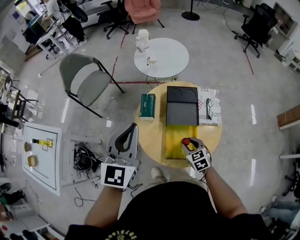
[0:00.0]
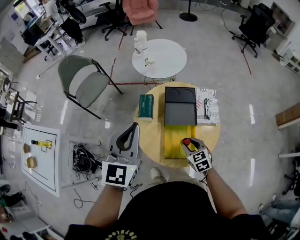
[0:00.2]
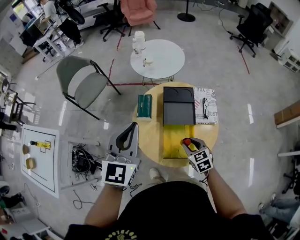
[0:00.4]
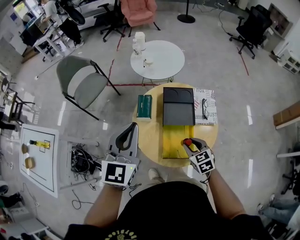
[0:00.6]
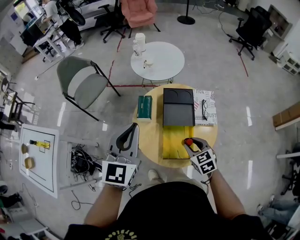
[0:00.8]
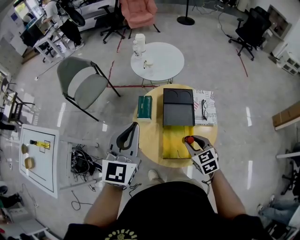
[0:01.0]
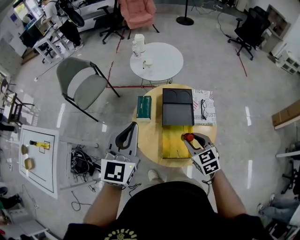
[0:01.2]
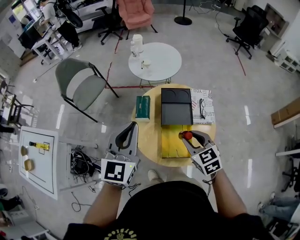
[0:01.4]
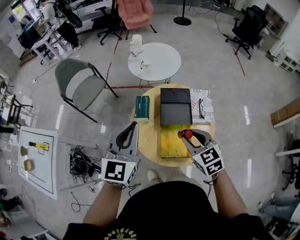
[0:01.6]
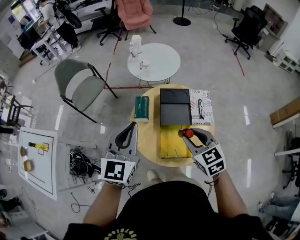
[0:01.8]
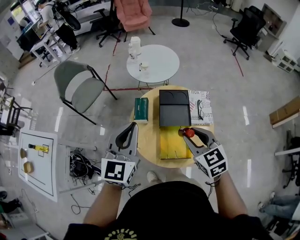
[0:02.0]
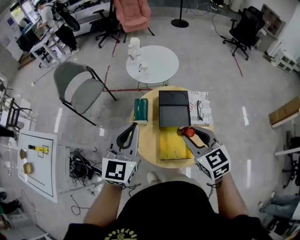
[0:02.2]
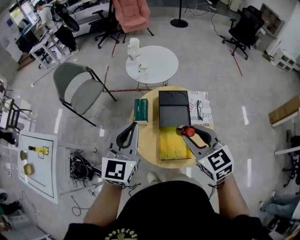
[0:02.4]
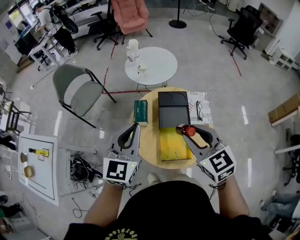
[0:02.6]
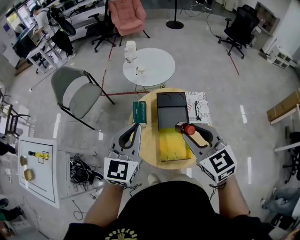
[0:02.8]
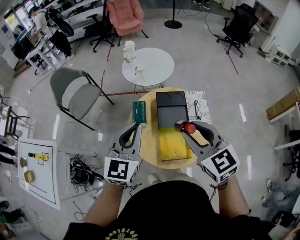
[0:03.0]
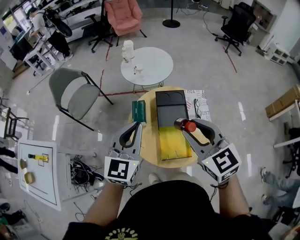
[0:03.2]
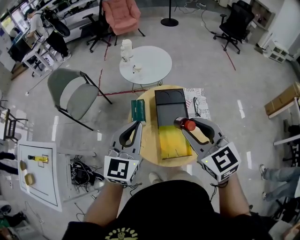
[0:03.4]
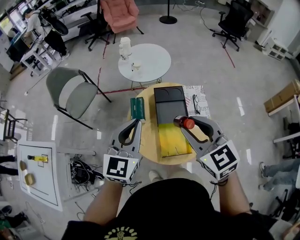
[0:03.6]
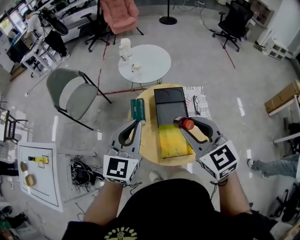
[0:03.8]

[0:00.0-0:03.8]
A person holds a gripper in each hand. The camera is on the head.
0:00.0 to 0:01.2: The right gripper goes roughly 15 cm upward.
0:01.2 to 0:02.6: The right gripper heads upward, covering roughly 15 cm.
0:02.6 to 0:03.8: There are only small adjustments of the grippers.

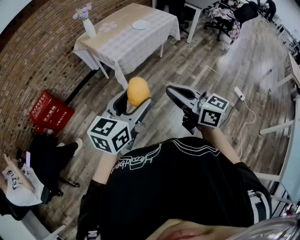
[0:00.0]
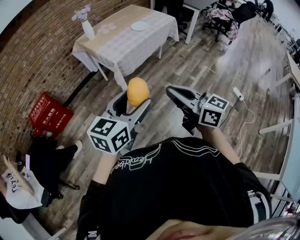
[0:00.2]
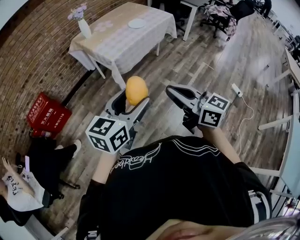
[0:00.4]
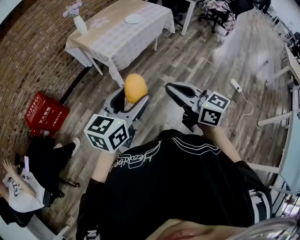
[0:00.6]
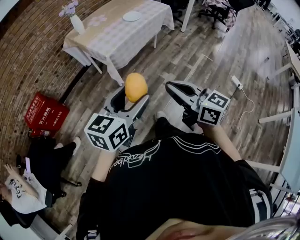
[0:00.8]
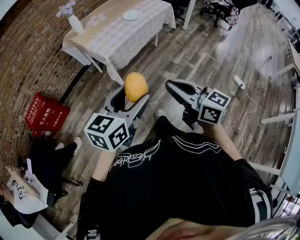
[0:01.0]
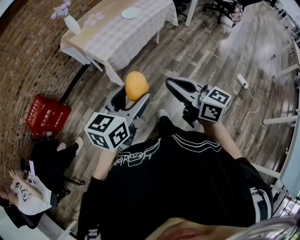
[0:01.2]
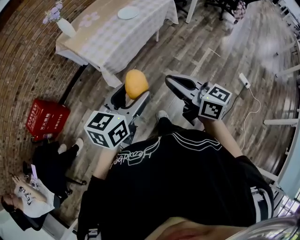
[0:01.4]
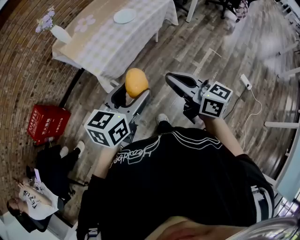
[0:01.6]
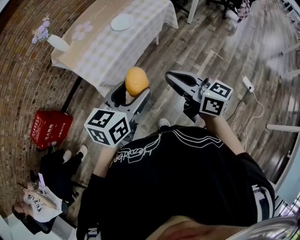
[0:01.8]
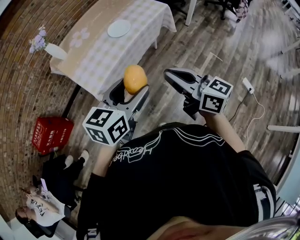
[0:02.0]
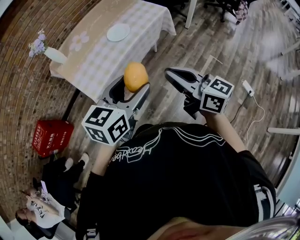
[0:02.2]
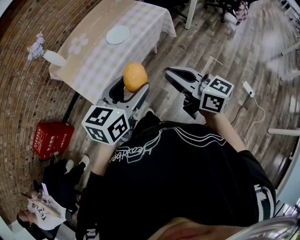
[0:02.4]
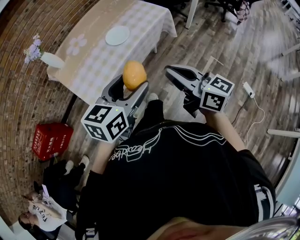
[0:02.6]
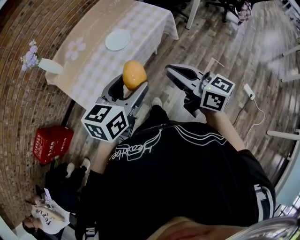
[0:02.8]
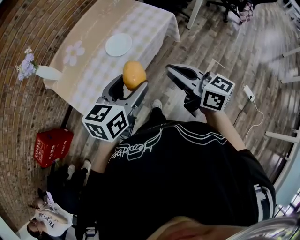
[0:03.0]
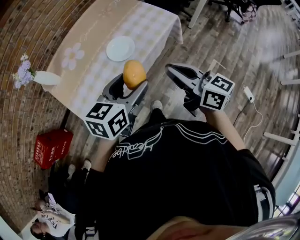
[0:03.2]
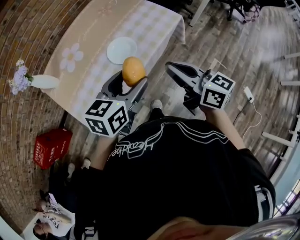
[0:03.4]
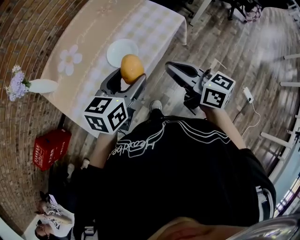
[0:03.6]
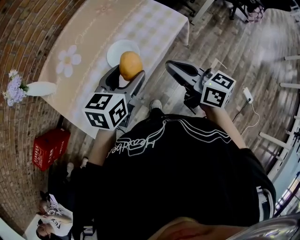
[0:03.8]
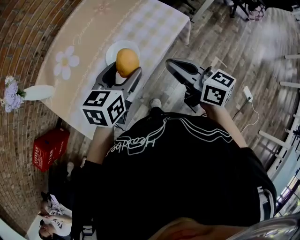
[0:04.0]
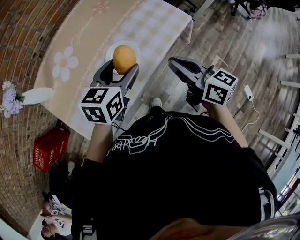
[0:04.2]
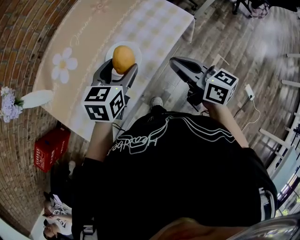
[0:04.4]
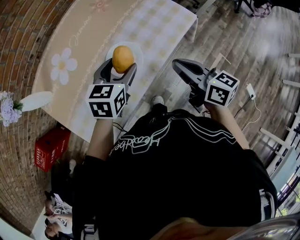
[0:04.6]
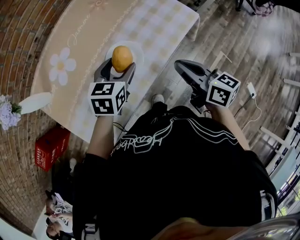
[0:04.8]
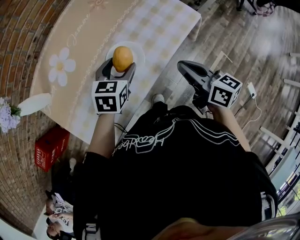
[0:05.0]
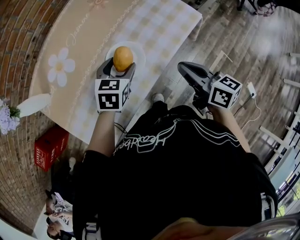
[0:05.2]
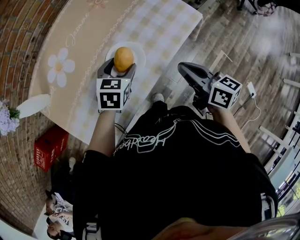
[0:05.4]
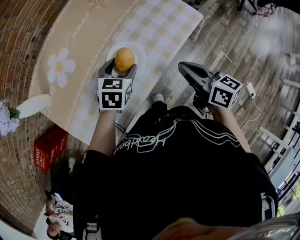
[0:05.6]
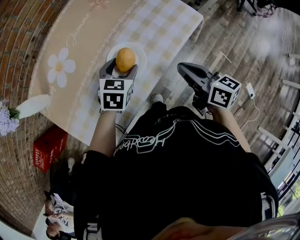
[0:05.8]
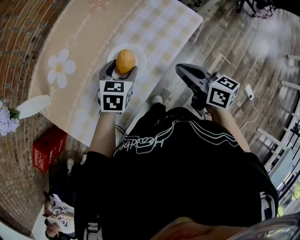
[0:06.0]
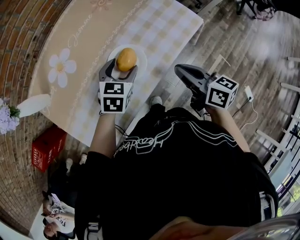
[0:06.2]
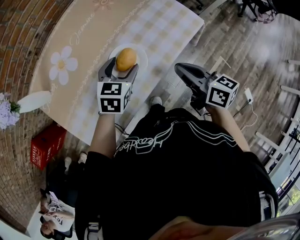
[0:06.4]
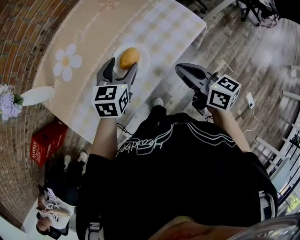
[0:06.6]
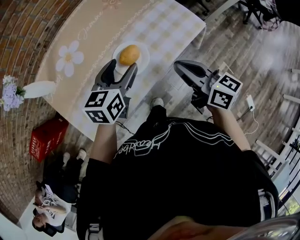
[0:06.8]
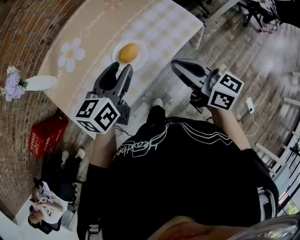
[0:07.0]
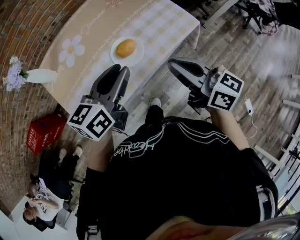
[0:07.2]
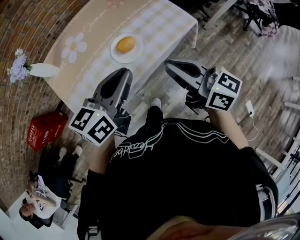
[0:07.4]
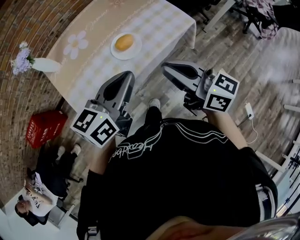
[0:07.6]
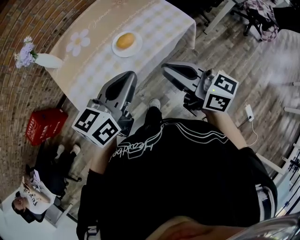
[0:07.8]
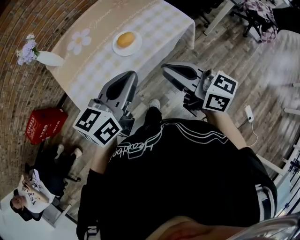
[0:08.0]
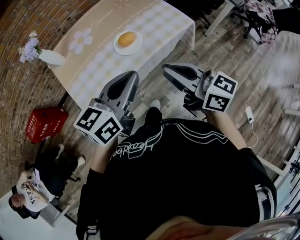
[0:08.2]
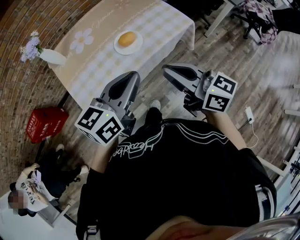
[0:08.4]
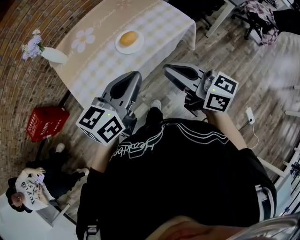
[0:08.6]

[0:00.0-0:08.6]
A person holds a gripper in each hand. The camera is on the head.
0:00.0 to 0:01.4: The left gripper shifts some 20 cm forward and downward. Meanwhile the right gripper is displaced forward and to the right by some 20 cm.
0:01.4 to 0:02.8: Both grippers move forward, some 30 cm.
0:02.8 to 0:04.4: Both grippers travel together forward, approximately 30 cm.
0:04.4 to 0:05.8: The right gripper travels downward by approximately 5 cm, while the left gripper travels downward by about 10 cm.
0:05.8 to 0:07.2: The right gripper heads upward, covering approximately 15 cm, and turns by approximately 20 degrees; the left gripper travels upward and backward by about 25 cm, angles its fingers upward, by approximately 30 degrees, and closes.
0:07.2 to 0:08.6: The two grippers go some 15 cm backward. The left gripper closes up.

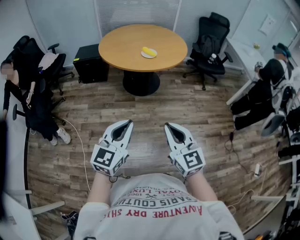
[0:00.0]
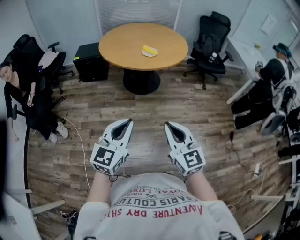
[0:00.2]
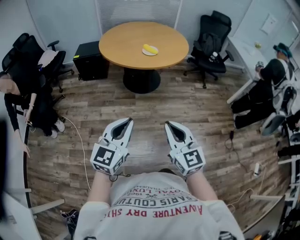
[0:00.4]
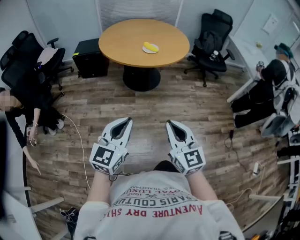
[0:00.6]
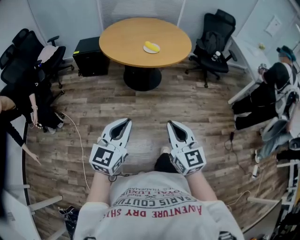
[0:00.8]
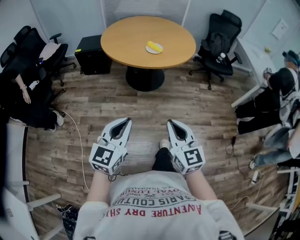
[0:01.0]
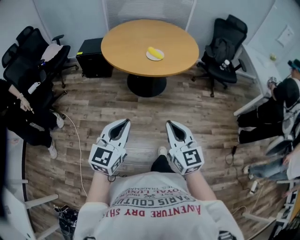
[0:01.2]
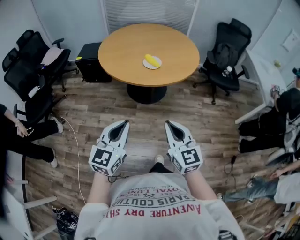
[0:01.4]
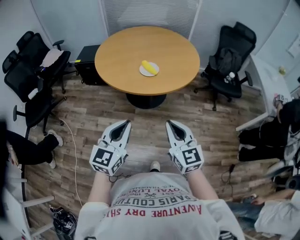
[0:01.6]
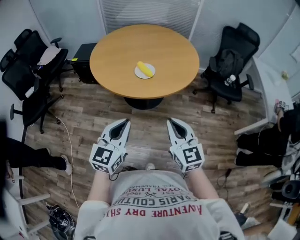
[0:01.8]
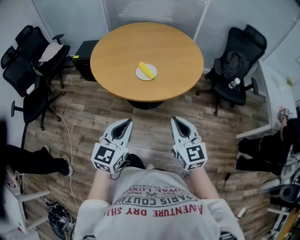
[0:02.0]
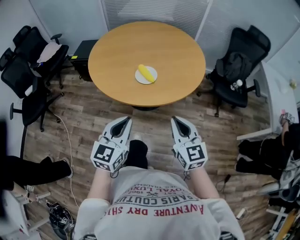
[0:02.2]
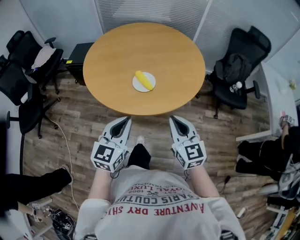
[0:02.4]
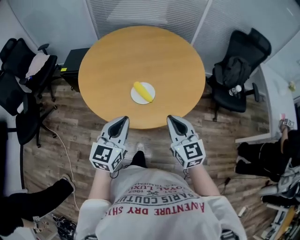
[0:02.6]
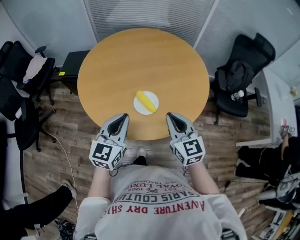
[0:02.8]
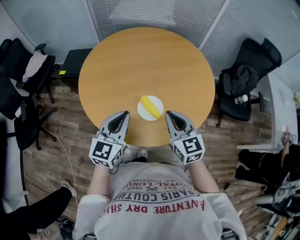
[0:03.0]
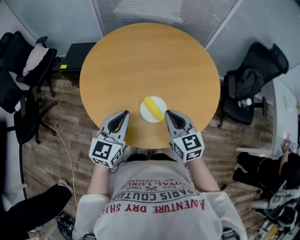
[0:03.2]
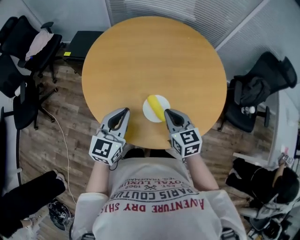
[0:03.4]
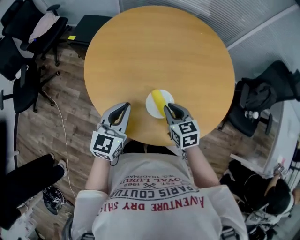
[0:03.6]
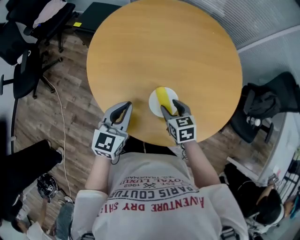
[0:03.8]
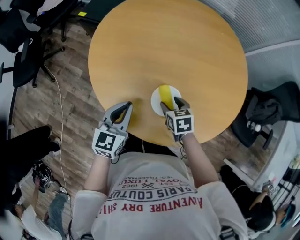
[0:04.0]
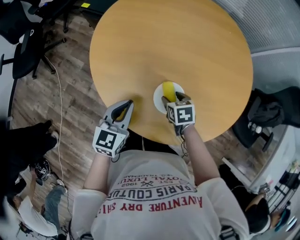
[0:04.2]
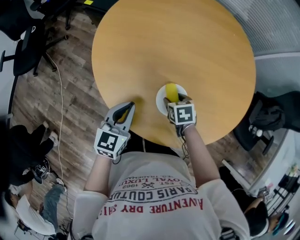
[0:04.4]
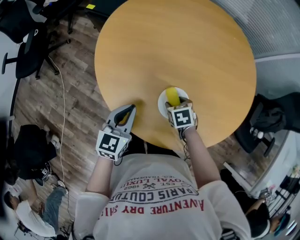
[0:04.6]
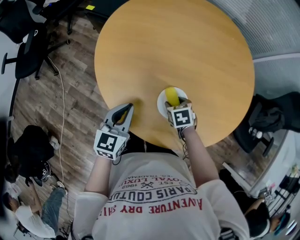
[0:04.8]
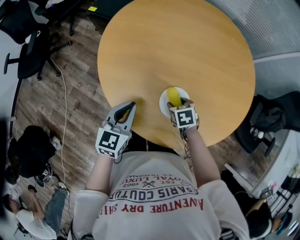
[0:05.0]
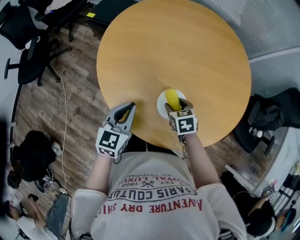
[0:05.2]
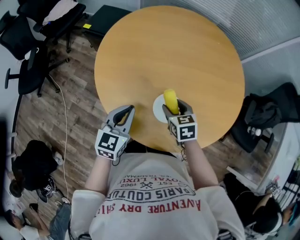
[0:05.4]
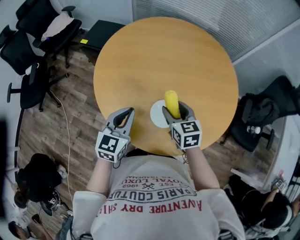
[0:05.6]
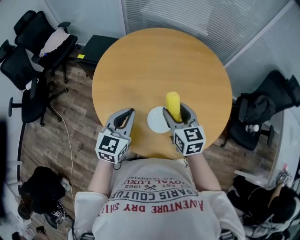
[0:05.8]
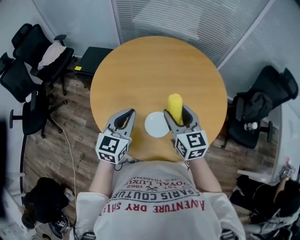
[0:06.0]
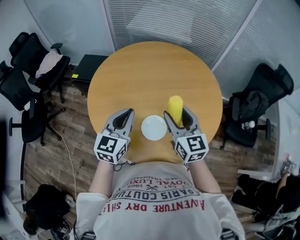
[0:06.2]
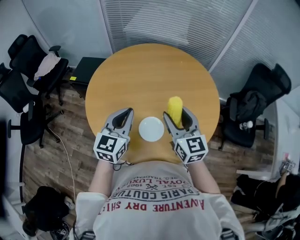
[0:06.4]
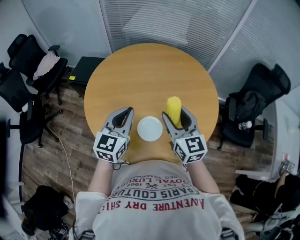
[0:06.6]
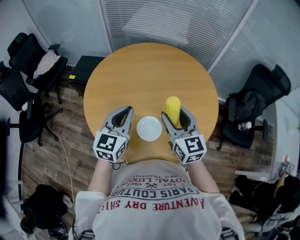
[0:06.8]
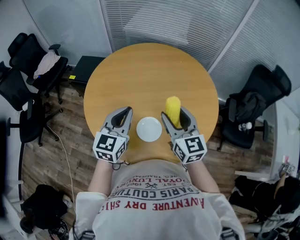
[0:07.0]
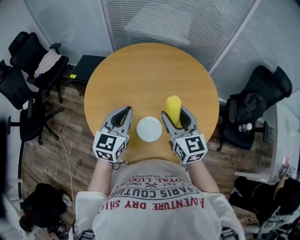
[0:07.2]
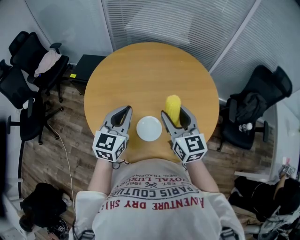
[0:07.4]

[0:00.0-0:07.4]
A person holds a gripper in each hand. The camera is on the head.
0:00.0 to 0:01.4: Both grippers travel together forward, roughly 20 cm.
0:01.4 to 0:03.0: The pair of grippers is taken forward, some 50 cm.
0:03.0 to 0:04.4: The right gripper heads downward, covering some 30 cm, tips its fingers downward by some 50 degrees, and opens. The left gripper is displaced downward by about 15 cm, and turns by roughly 30 degrees.
0:04.4 to 0:06.0: The left gripper heads upward, covering approximately 15 cm; the right gripper heads upward, covering about 30 cm, and tilts its fingers some 50 degrees upward.
0:06.0 to 0:07.4: The left gripper shifts by approximately 5 cm. The right gripper shifts by approximately 5 cm.

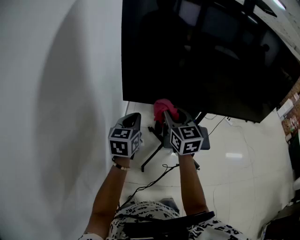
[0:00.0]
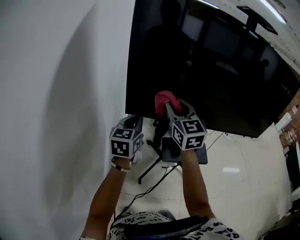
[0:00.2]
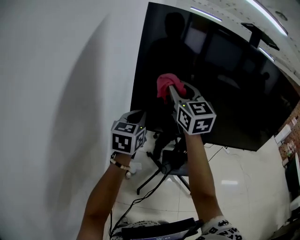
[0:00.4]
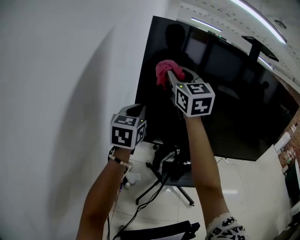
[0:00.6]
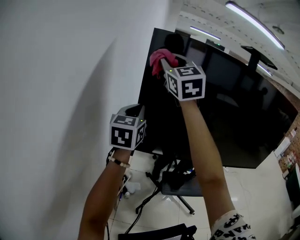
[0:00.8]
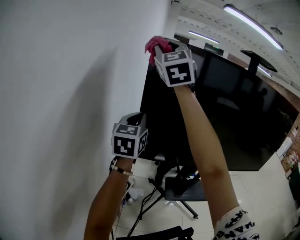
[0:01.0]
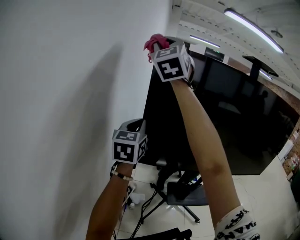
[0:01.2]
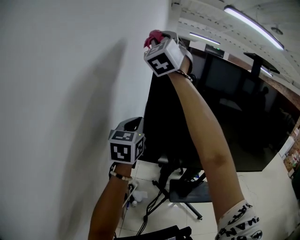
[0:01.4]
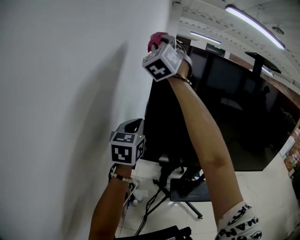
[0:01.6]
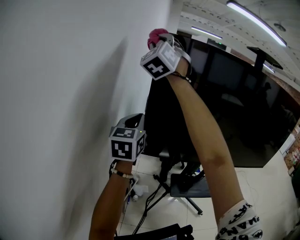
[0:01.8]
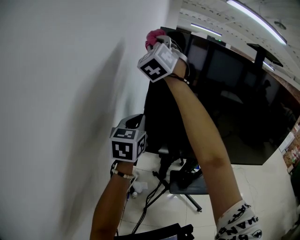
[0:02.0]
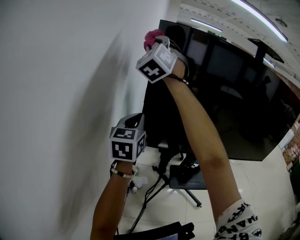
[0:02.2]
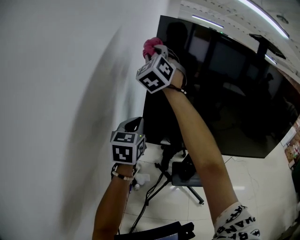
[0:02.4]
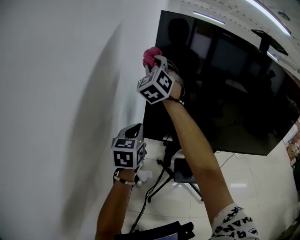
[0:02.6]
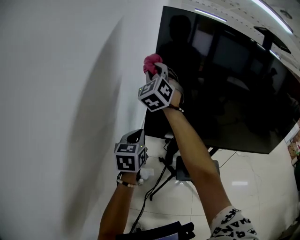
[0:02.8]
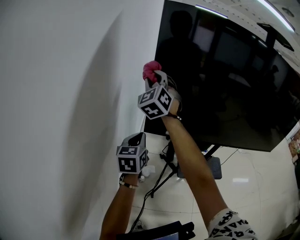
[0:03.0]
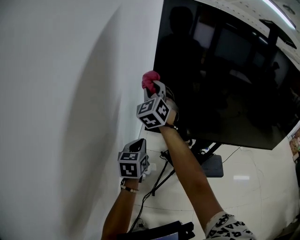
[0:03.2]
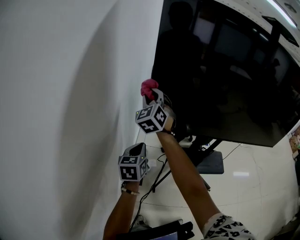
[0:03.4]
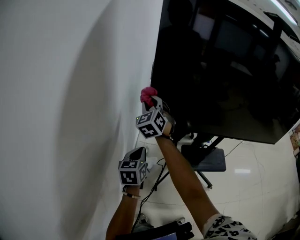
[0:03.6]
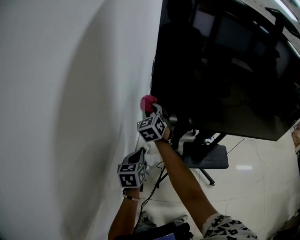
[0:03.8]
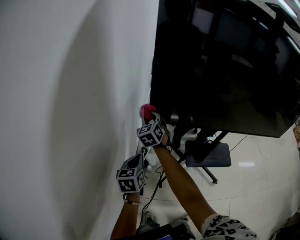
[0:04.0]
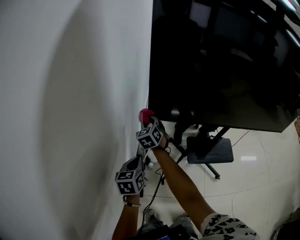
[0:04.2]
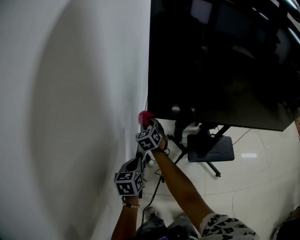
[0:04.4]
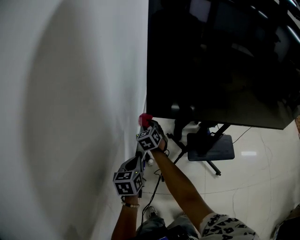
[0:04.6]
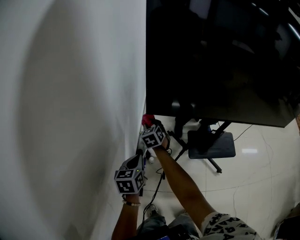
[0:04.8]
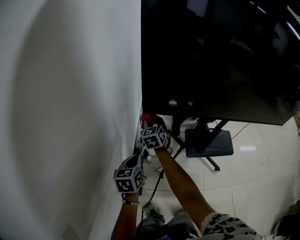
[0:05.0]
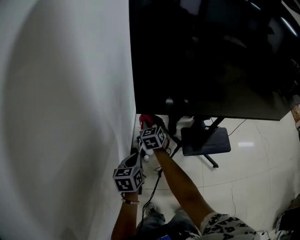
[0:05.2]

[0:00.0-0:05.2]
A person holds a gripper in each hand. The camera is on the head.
0:00.0 to 0:01.8: The left gripper travels upward and to the left by approximately 25 cm. The right gripper heads upward and to the left, covering approximately 50 cm, and rotates around the line of its fingers by approximately 50 degrees, counterclockwise from behind.
0:01.8 to 0:03.4: Both grippers travel together downward, approximately 35 cm. The right gripper swivels roughly 30 degrees, while the left gripper rotates some 30 degrees.
0:03.4 to 0:05.2: The right gripper moves downward, roughly 25 cm, and swivels approximately 30 degrees; the left gripper moves downward, roughly 10 cm.
